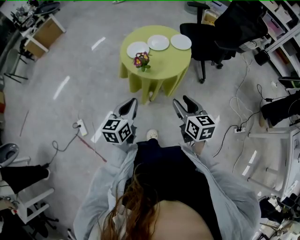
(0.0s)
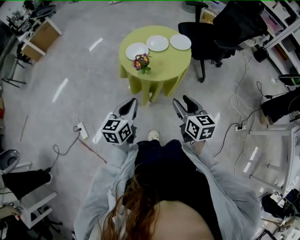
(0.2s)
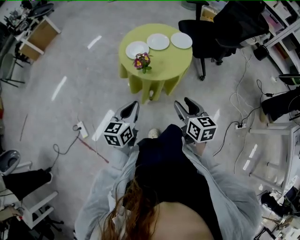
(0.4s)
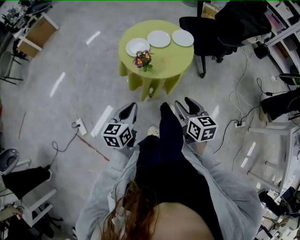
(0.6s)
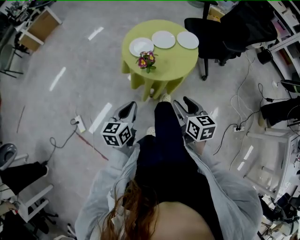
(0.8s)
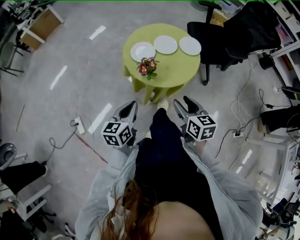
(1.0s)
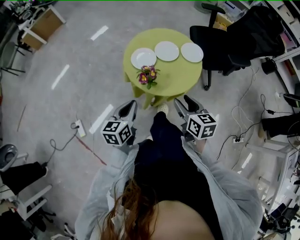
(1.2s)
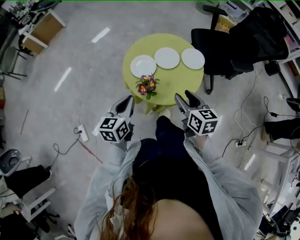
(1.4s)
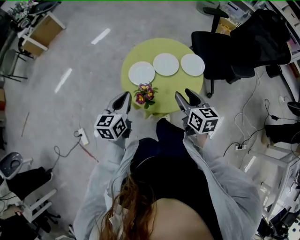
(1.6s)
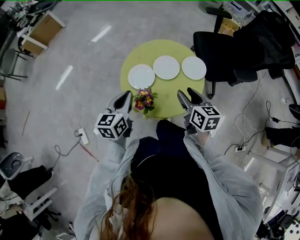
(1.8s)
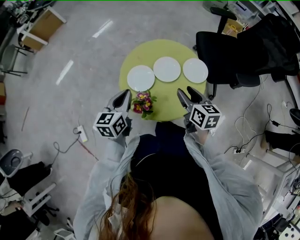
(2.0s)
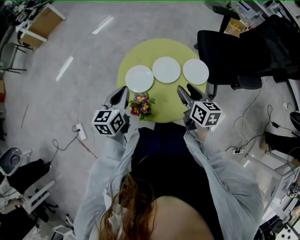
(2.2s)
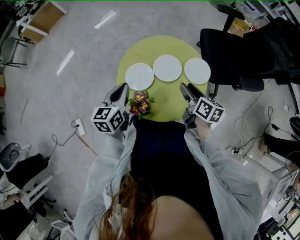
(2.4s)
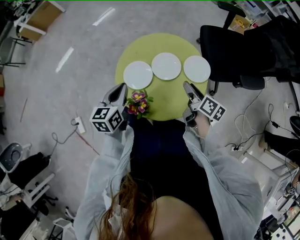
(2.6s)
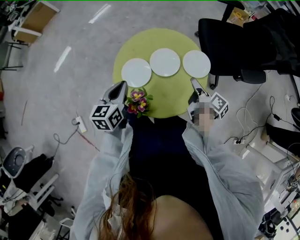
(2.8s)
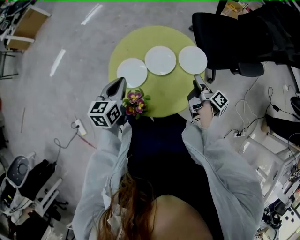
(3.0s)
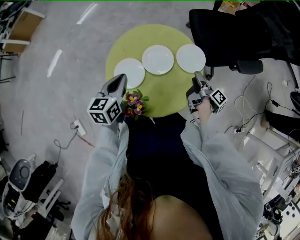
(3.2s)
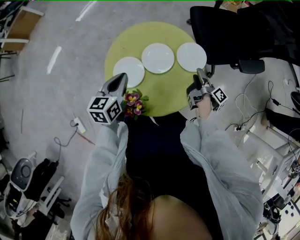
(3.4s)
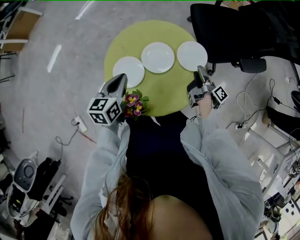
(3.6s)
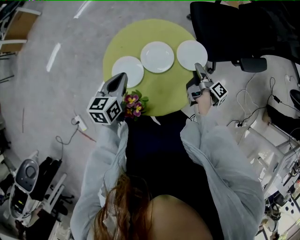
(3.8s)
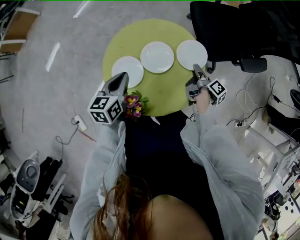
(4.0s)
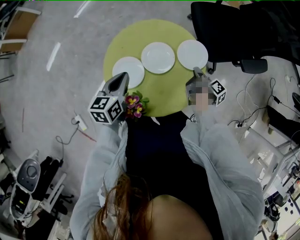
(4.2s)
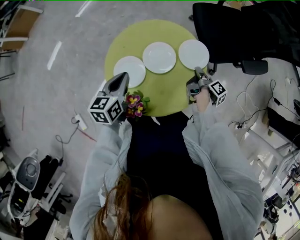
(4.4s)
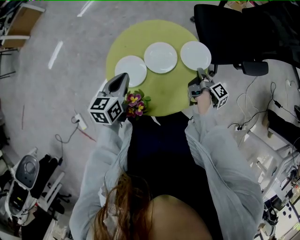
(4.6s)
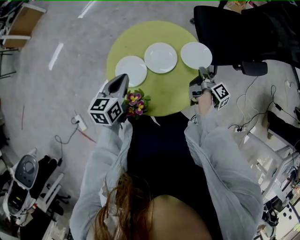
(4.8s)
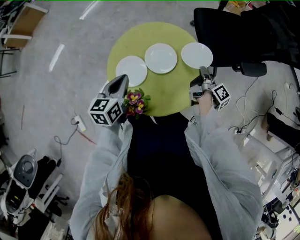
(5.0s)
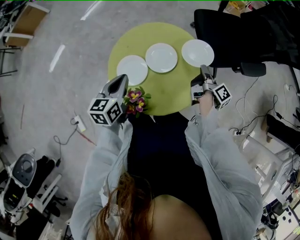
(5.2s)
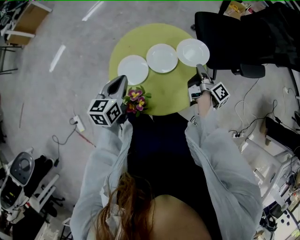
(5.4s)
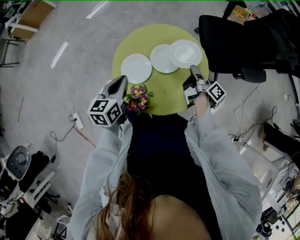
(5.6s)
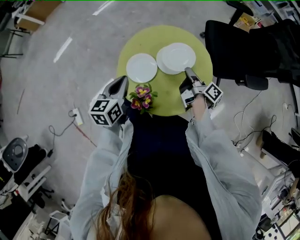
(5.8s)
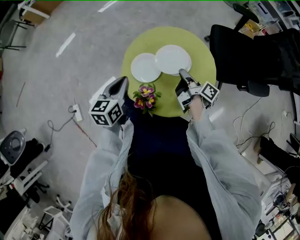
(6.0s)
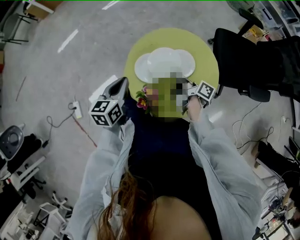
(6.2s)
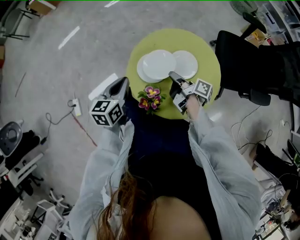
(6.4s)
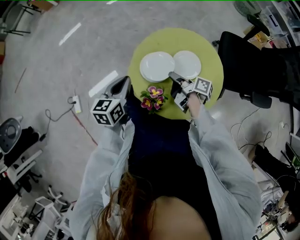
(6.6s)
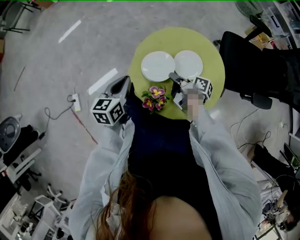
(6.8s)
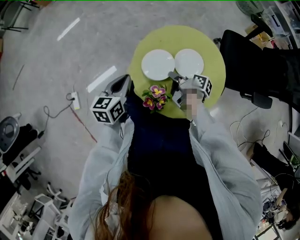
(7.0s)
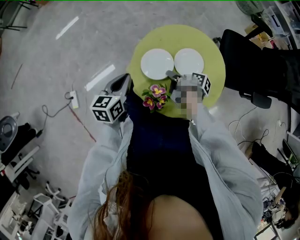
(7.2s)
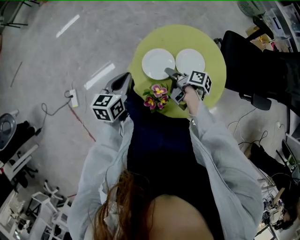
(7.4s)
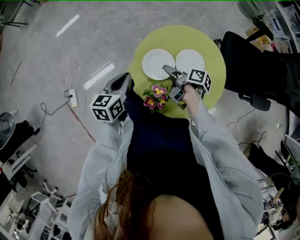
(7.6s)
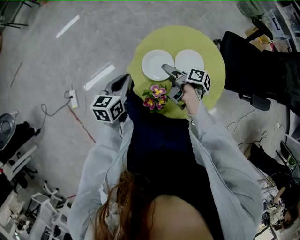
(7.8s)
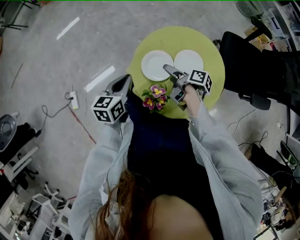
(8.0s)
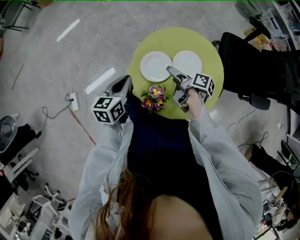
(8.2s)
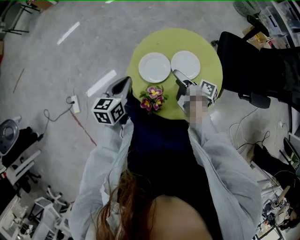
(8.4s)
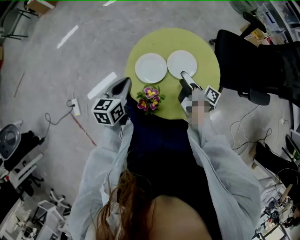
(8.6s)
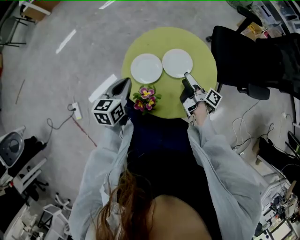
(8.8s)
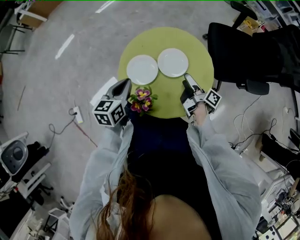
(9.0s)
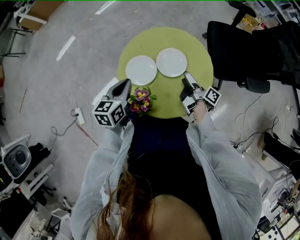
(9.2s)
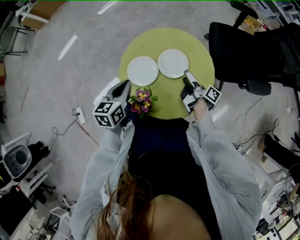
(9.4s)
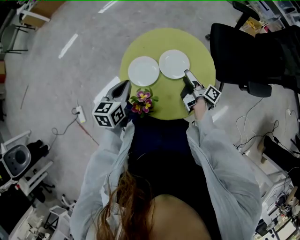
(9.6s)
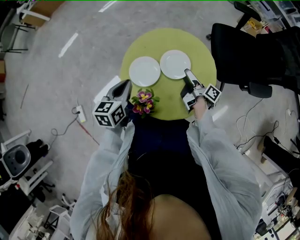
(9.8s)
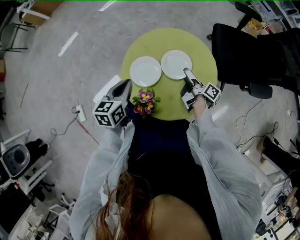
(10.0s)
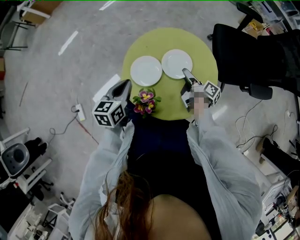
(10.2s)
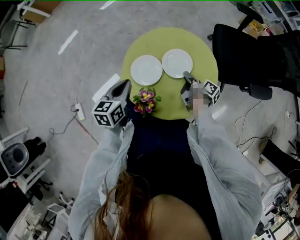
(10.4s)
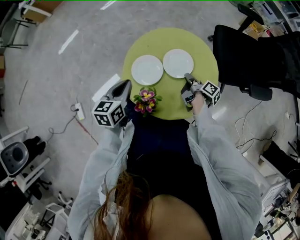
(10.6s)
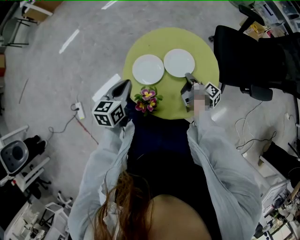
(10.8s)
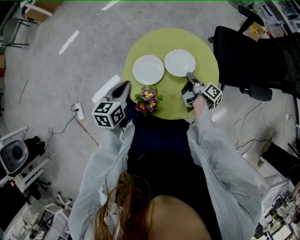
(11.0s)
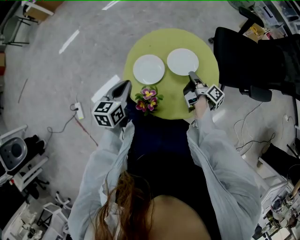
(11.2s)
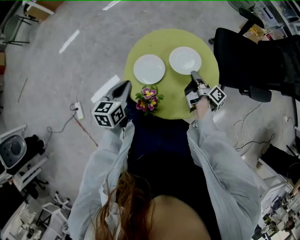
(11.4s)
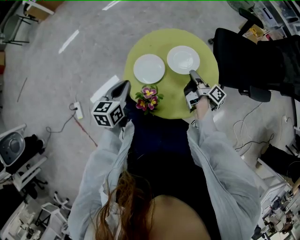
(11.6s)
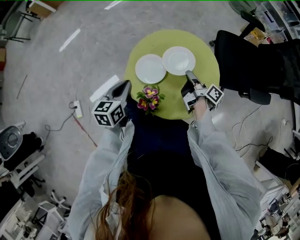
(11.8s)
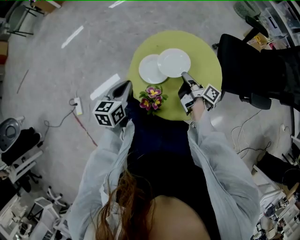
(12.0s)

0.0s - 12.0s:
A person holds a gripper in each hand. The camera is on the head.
0.0s - 1.6s: Both grippers move forward, approximately 25 cm.
1.6s - 3.0s: The right gripper is displaced downward, to the right and forward by about 20 cm, and rotates around the line of its fingers by roughly 70 degrees, clockwise from behind. Meanwhile the left gripper moves forward and downward, approximately 15 cm.
3.0s - 4.4s: The right gripper is displaced downward by roughly 5 cm, and closes its fingers.
4.4s - 6.0s: The right gripper shifts approximately 20 cm to the left and upward, and swivels about 40 degrees; the left gripper travels backward and to the left by some 10 cm.
6.0s - 7.6s: The left gripper changes place by about 5 cm, while the right gripper moves to the left, about 10 cm, rotates roughly 30 degrees, and opens up.
7.6s - 9.0s: The right gripper travels to the right by some 15 cm, and turns by some 30 degrees. The left gripper shifts approximately 5 cm to the right.
9.0s - 10.4s: The right gripper moves about 5 cm, and closes its fingers.
10.4s - 12.0s: The right gripper is displaced upward and to the left by approximately 10 cm.

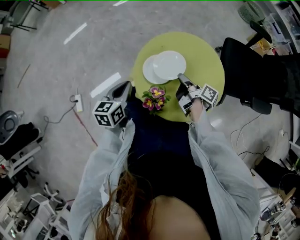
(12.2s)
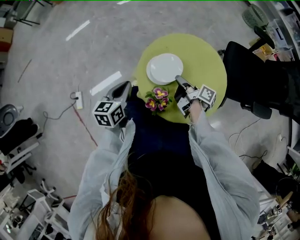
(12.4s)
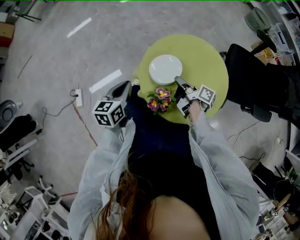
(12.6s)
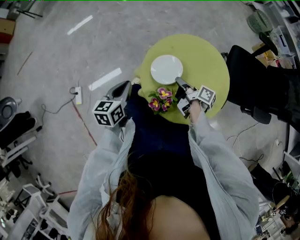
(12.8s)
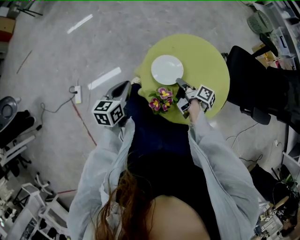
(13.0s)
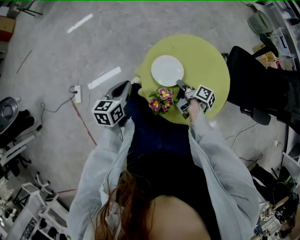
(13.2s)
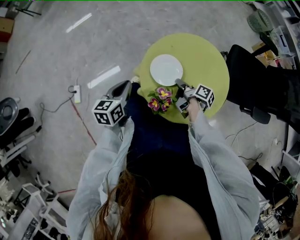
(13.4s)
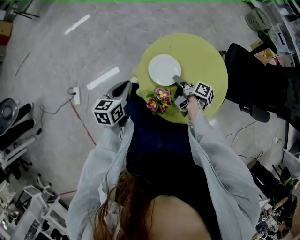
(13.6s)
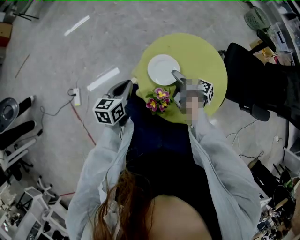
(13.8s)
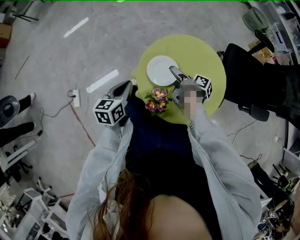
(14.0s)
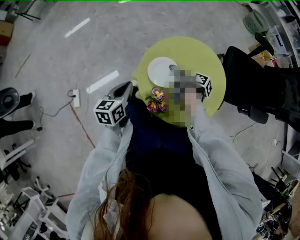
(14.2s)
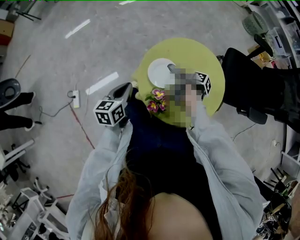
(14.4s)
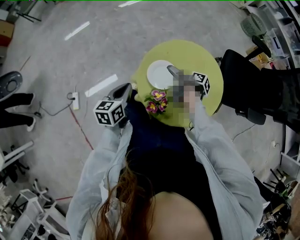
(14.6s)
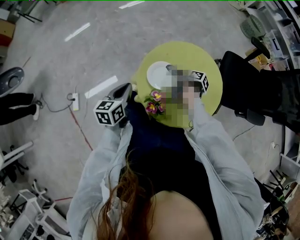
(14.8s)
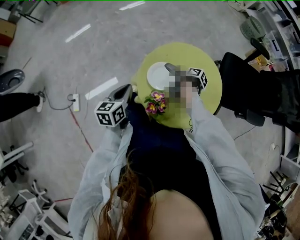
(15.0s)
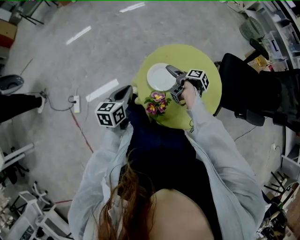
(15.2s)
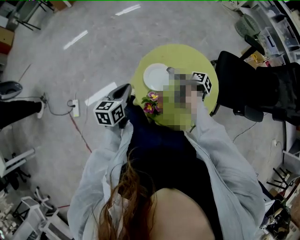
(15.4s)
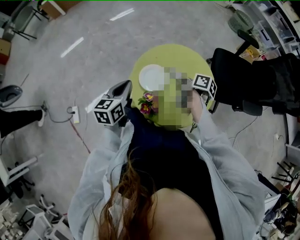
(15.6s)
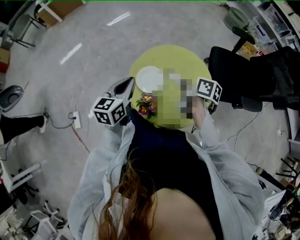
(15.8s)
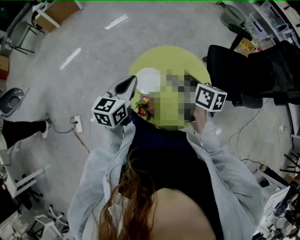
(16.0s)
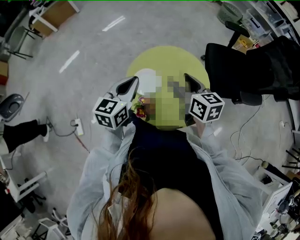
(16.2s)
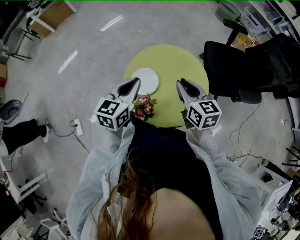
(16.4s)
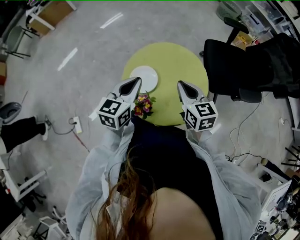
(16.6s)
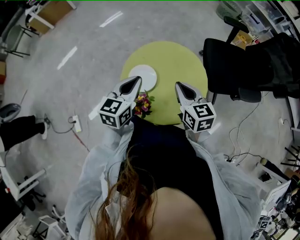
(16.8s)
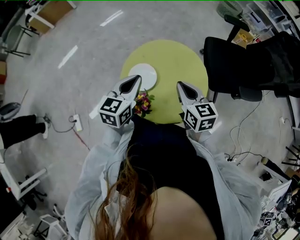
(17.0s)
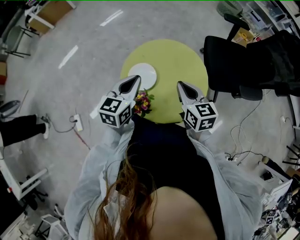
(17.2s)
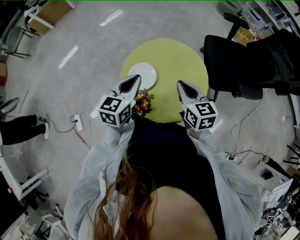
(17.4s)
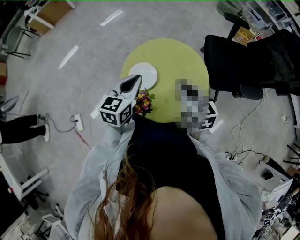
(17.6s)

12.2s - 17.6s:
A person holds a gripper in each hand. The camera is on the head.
12.2s - 13.6s: The right gripper heads downward, covering approximately 5 cm.
13.6s - 15.0s: The right gripper changes place by roughly 5 cm, and opens up.
15.0s - 16.2s: The right gripper goes some 20 cm upward, rotates around the line of its fingers by about 70 degrees, counterclockwise from behind, and closes its fingers. The left gripper heads upward and to the right, covering some 15 cm, and swivels roughly 30 degrees.
16.2s - 17.6s: The right gripper shifts by some 5 cm, and closes.

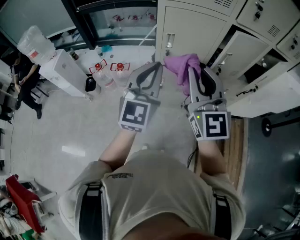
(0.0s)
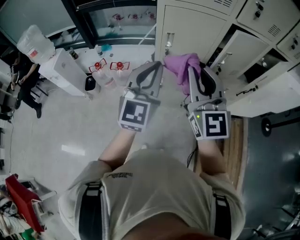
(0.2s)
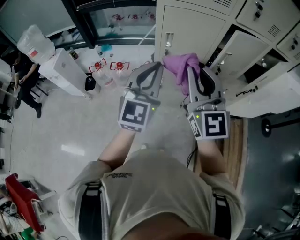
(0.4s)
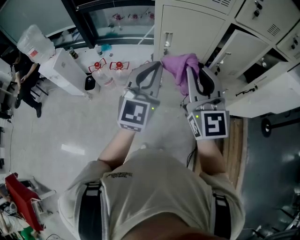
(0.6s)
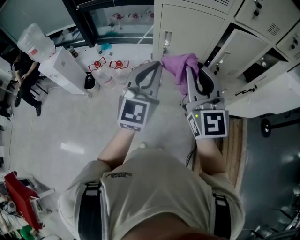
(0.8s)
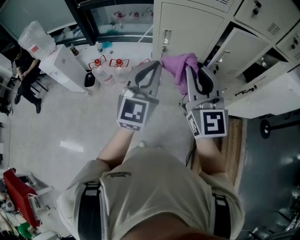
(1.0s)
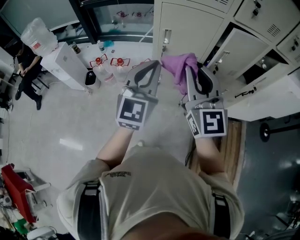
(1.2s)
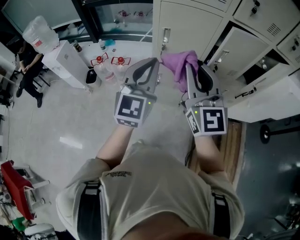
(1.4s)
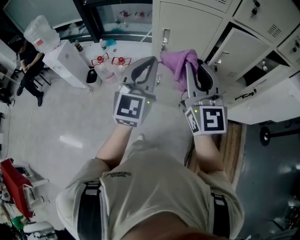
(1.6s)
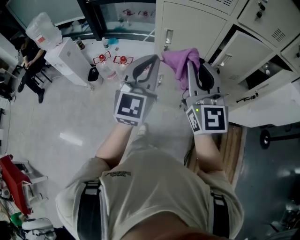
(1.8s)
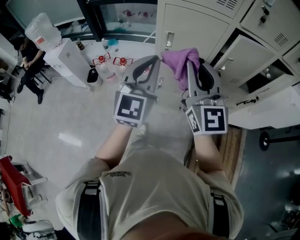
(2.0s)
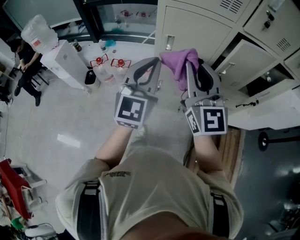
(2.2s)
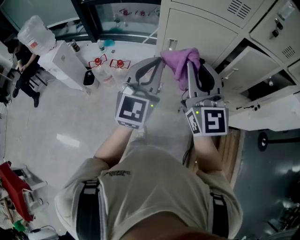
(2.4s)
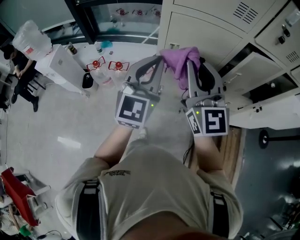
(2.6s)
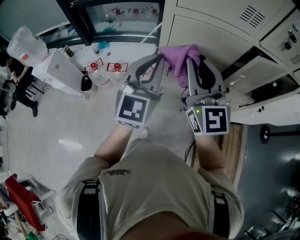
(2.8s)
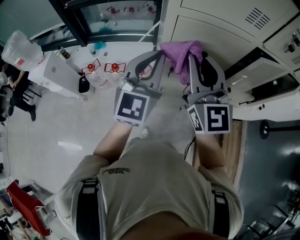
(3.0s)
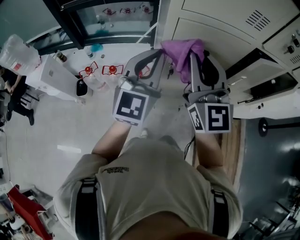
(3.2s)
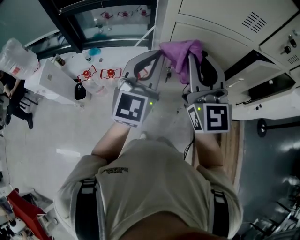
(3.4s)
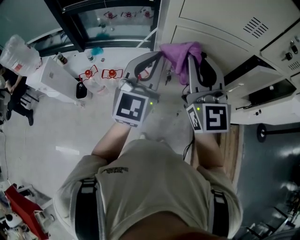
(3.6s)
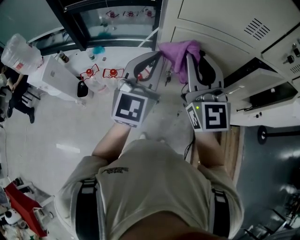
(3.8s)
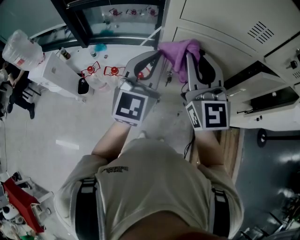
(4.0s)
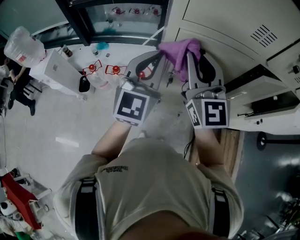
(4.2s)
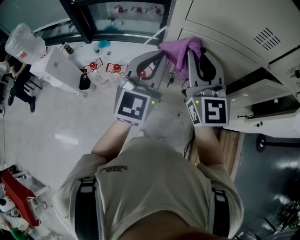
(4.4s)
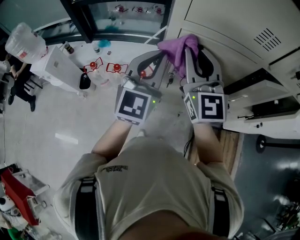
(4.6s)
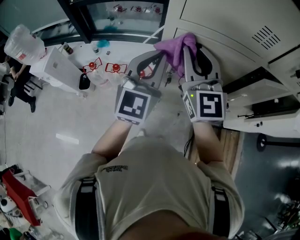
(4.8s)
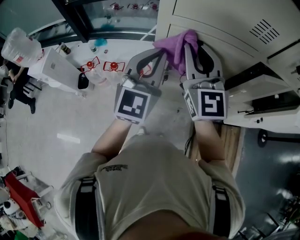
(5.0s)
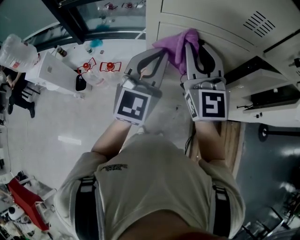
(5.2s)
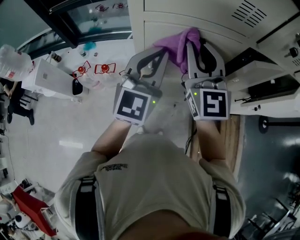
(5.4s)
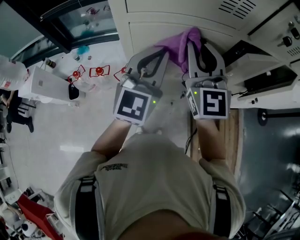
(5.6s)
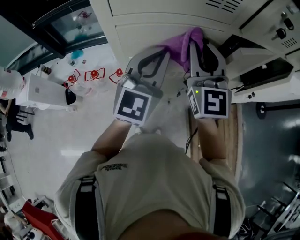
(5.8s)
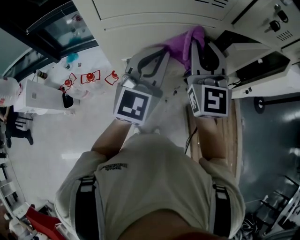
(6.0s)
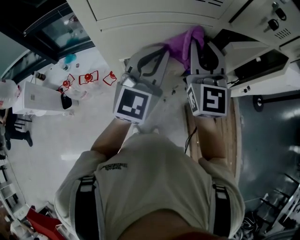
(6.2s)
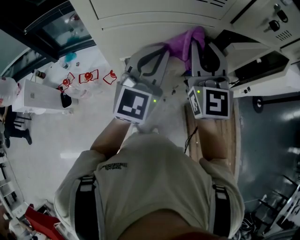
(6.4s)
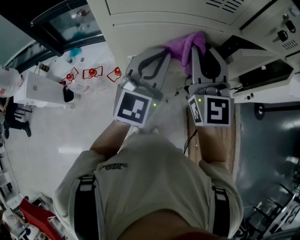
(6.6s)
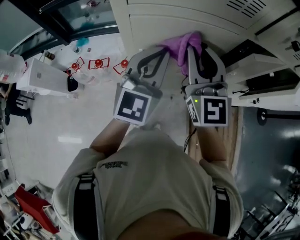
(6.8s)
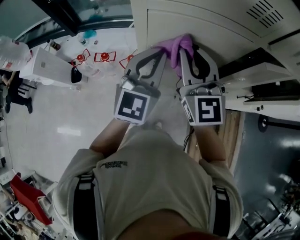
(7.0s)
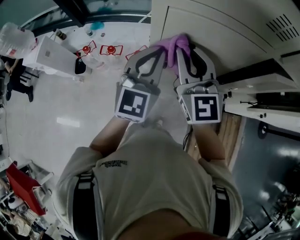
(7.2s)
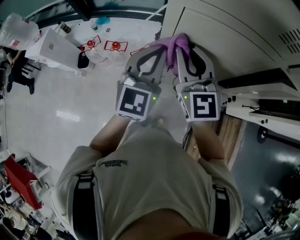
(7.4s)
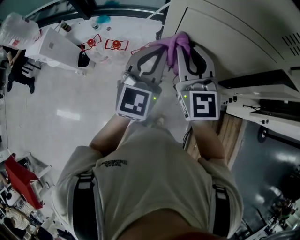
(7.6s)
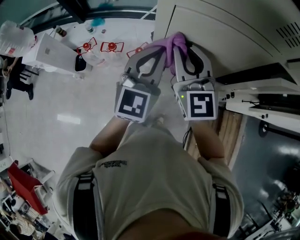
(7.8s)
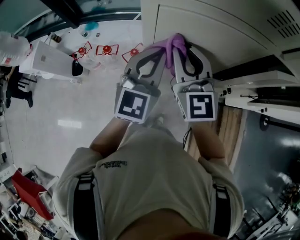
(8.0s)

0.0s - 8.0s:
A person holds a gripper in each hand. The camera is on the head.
0.0s - 1.6s: The grippers stay close to where they were, moving slightly.
1.6s - 3.2s: The right gripper moves forward and to the left, some 20 cm; the left gripper shifts roughly 20 cm forward.
3.2s - 4.8s: The right gripper goes roughly 10 cm forward.
4.8s - 6.4s: The grippers both shift to the right by roughly 15 cm.
6.4s - 8.0s: The two grippers go approximately 15 cm to the left and downward. The right gripper swivels approximately 20 degrees.
